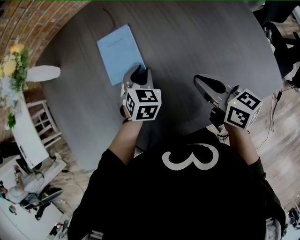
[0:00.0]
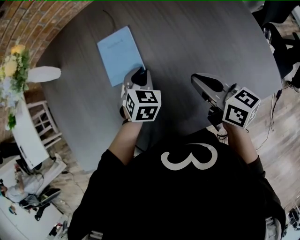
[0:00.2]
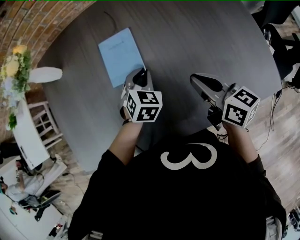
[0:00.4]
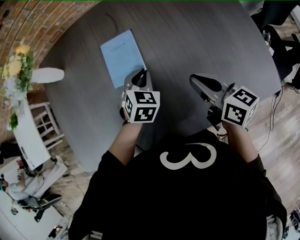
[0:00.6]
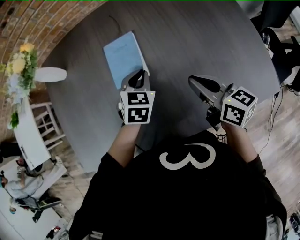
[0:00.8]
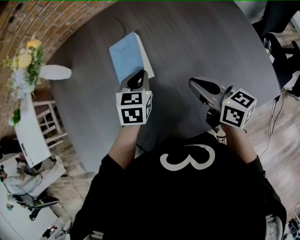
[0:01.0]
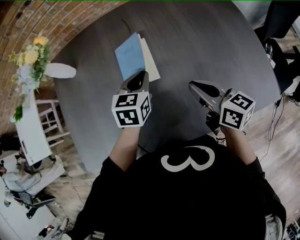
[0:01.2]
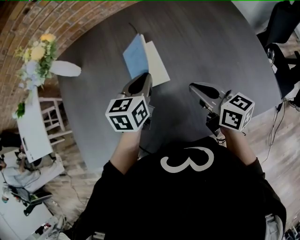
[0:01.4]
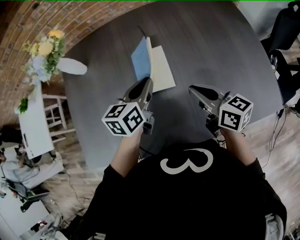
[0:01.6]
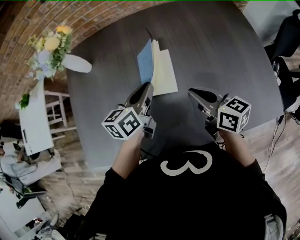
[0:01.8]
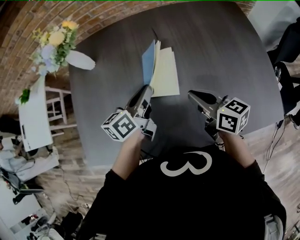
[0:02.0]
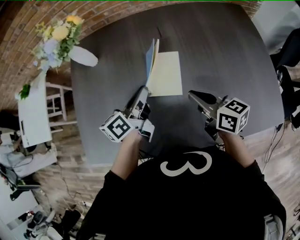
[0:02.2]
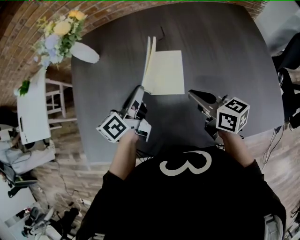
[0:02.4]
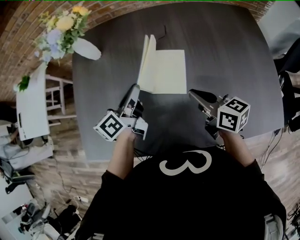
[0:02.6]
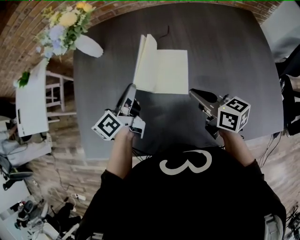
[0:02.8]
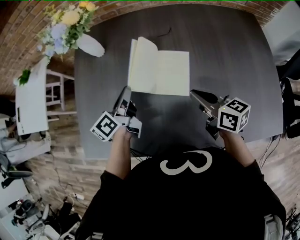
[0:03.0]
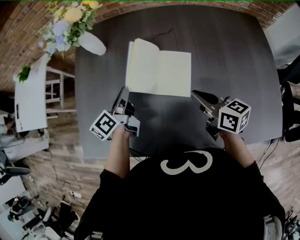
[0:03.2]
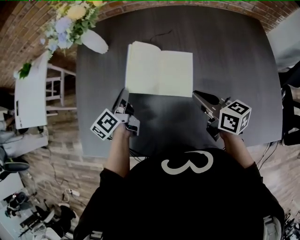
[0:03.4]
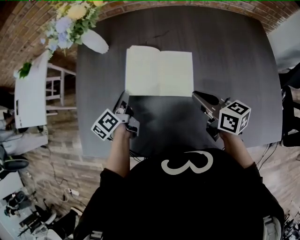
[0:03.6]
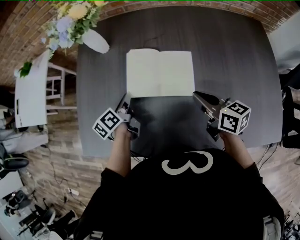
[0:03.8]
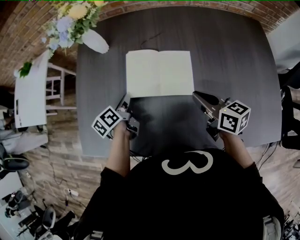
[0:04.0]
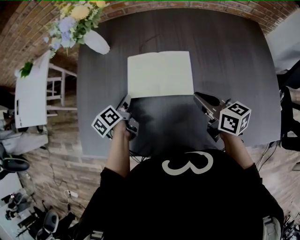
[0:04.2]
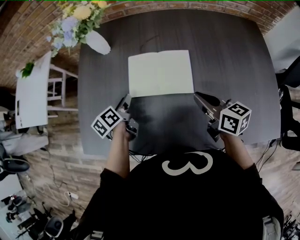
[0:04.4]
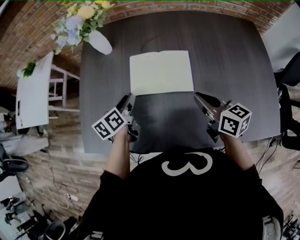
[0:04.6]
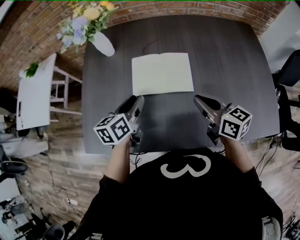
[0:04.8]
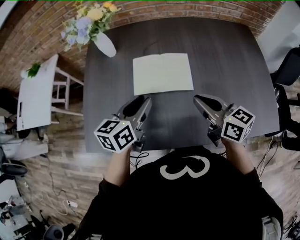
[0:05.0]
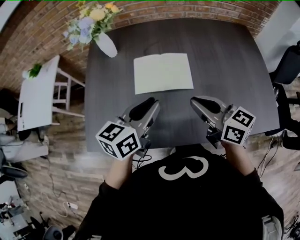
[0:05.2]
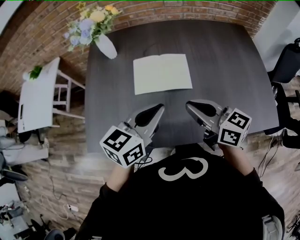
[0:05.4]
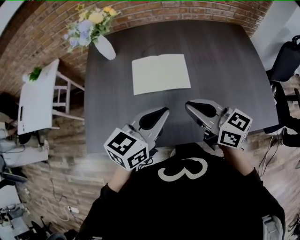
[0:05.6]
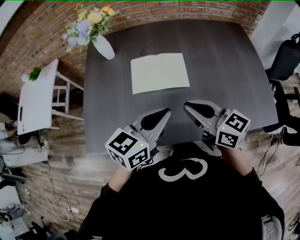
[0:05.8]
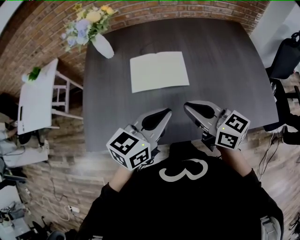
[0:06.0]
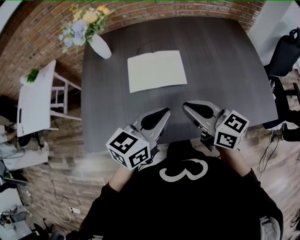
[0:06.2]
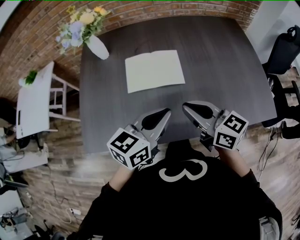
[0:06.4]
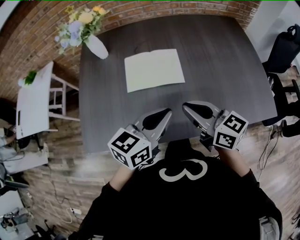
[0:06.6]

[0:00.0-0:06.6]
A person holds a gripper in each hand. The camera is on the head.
0.0 to 1.6 s: The right gripper goes about 5 cm to the left. The left gripper travels upward and to the left by approximately 15 cm, and rotates around the line of its fingers by approximately 40 degrees, counterclockwise from behind.
1.6 to 3.2 s: The right gripper travels to the left by approximately 5 cm. The left gripper is displaced to the left by roughly 20 cm, and twists roughly 40 degrees counterclockwise, seen from behind.
3.2 to 5.0 s: The right gripper travels upward and backward by some 10 cm; the left gripper travels backward and upward by about 15 cm, swivels about 40 degrees, and opens.
5.0 to 6.6 s: The left gripper moves backward and to the right, roughly 15 cm, turns by some 20 degrees, and closes, while the right gripper travels backward by roughly 5 cm.

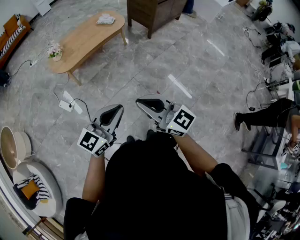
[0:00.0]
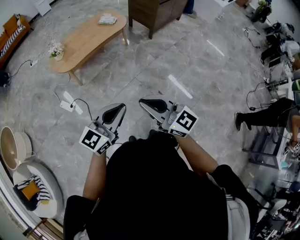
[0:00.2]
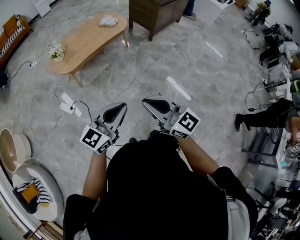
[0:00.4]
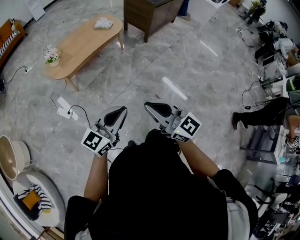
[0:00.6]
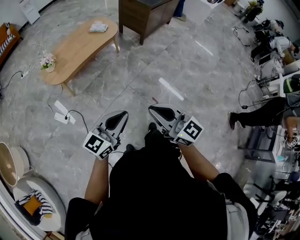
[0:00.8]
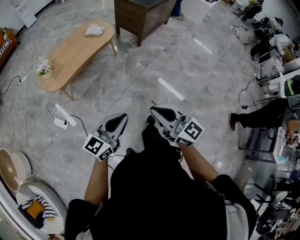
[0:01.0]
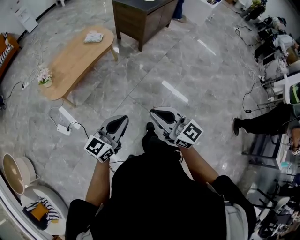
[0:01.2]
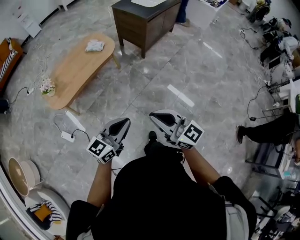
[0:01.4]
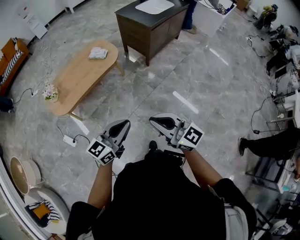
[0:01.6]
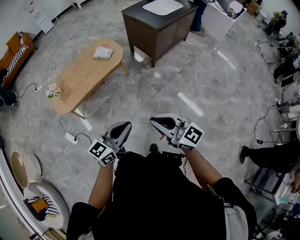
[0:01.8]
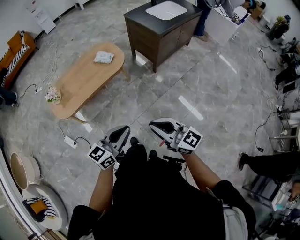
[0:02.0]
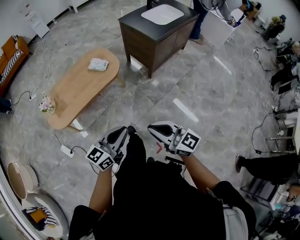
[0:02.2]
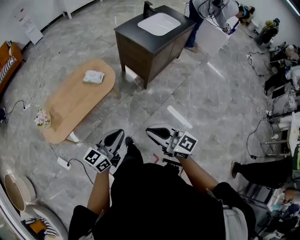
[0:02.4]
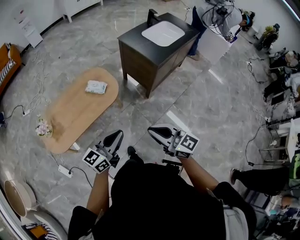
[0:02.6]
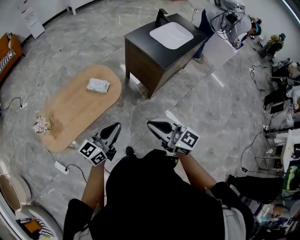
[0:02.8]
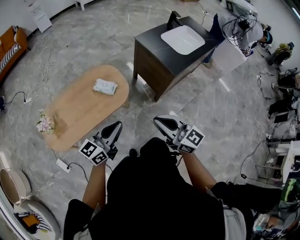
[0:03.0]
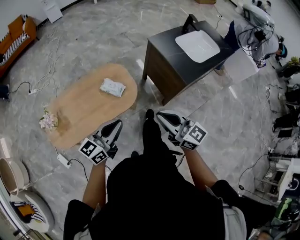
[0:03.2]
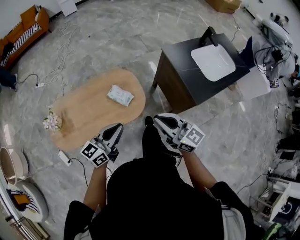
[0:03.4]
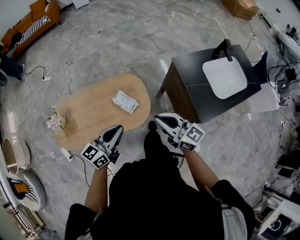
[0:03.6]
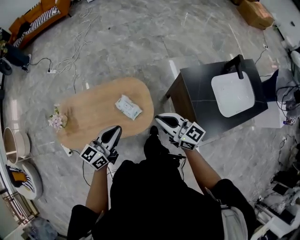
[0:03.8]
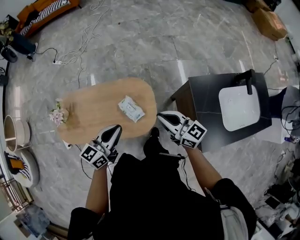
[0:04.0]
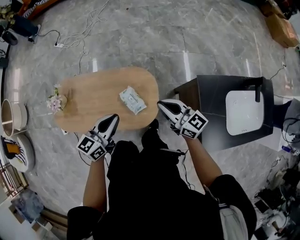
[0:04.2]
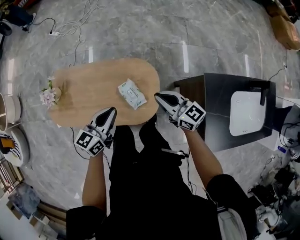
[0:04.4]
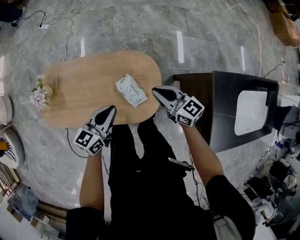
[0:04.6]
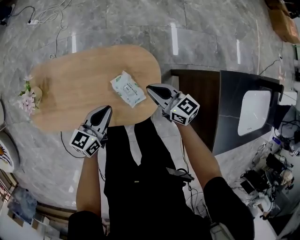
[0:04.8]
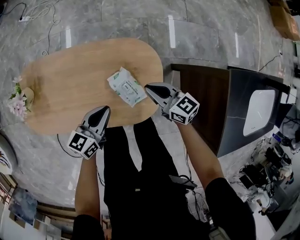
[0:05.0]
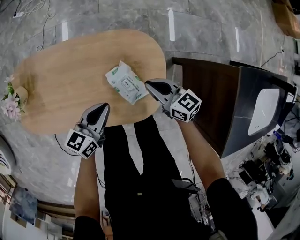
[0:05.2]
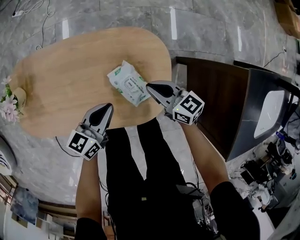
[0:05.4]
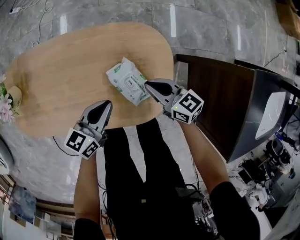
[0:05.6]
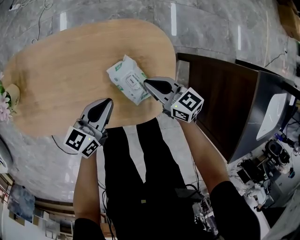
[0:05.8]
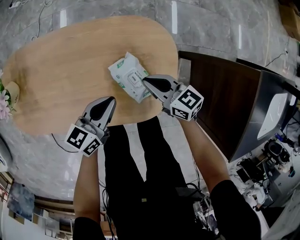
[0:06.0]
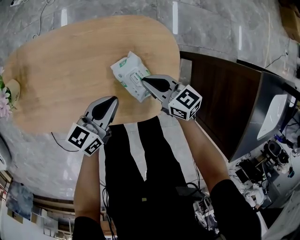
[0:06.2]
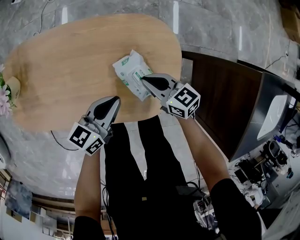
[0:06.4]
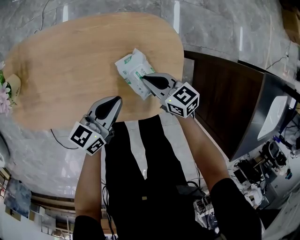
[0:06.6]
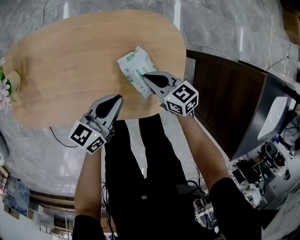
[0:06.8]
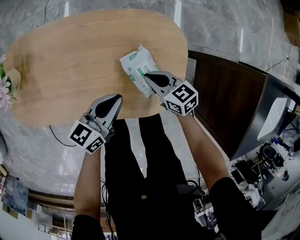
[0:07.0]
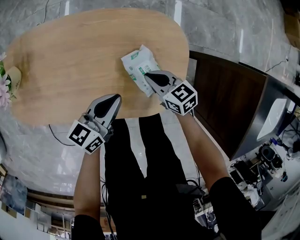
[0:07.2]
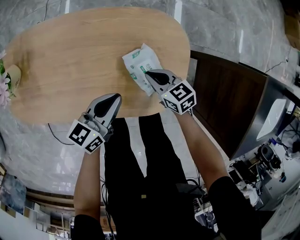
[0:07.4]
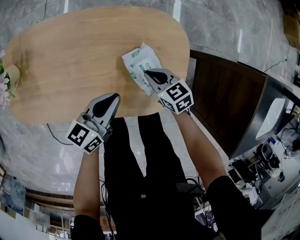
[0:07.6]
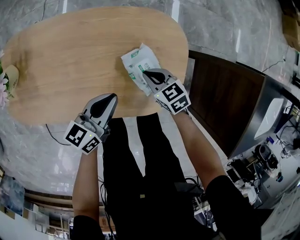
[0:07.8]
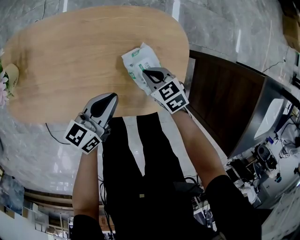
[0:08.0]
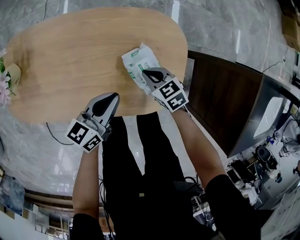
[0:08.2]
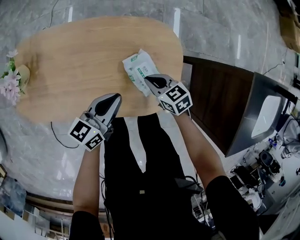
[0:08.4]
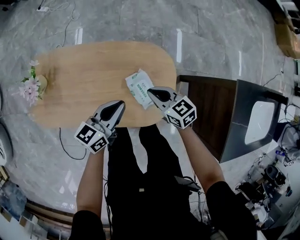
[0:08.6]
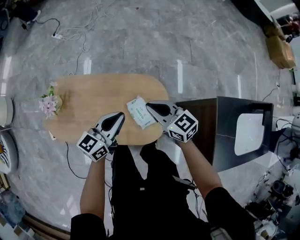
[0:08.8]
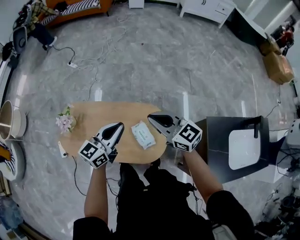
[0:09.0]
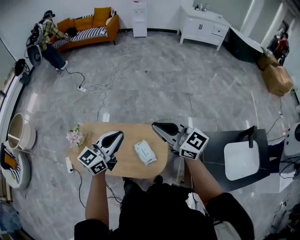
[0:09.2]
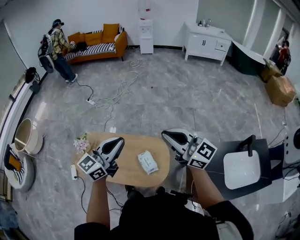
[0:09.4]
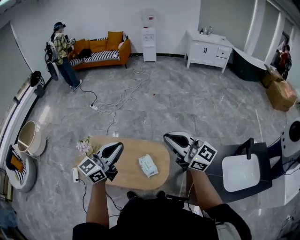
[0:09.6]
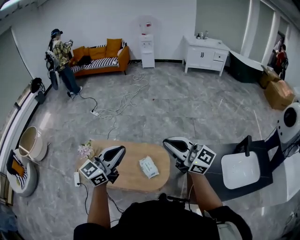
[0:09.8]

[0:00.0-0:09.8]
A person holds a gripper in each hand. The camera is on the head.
0.0 to 1.4 s: The right gripper shifts some 25 cm forward and to the right; the left gripper shifts approximately 25 cm forward.
1.4 to 2.8 s: The pair of grippers is taken forward, some 50 cm.
2.8 to 4.2 s: The two grippers travel together, some 50 cm. The left gripper changes its angle by approximately 40 degrees. Meanwhile the right gripper turns by about 40 degrees.
4.2 to 5.6 s: Both grippers travel together downward, about 35 cm. The right gripper rotates about 20 degrees.
5.6 to 7.0 s: The right gripper shifts some 10 cm downward and to the left.
8.4 to 9.8 s: Both grippers travel together upward, roughly 60 cm. The right gripper points its fingers roughly 60 degrees further upward. The left gripper swivels roughly 40 degrees.

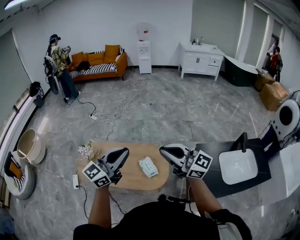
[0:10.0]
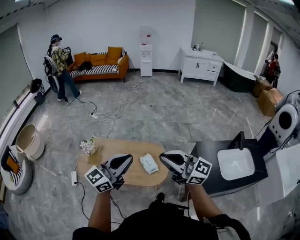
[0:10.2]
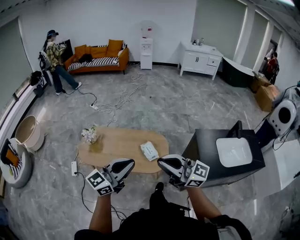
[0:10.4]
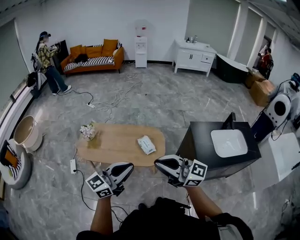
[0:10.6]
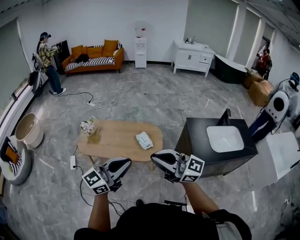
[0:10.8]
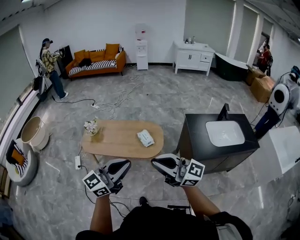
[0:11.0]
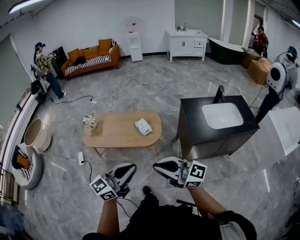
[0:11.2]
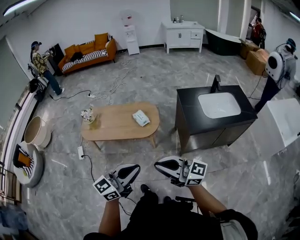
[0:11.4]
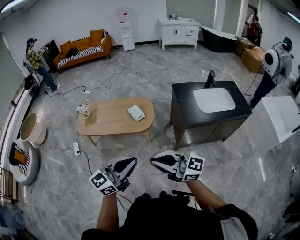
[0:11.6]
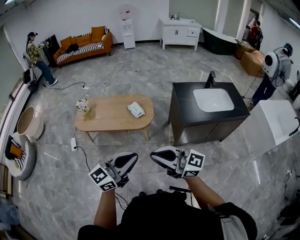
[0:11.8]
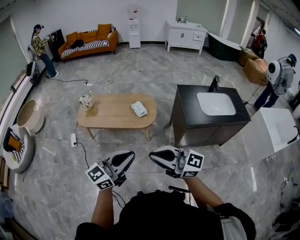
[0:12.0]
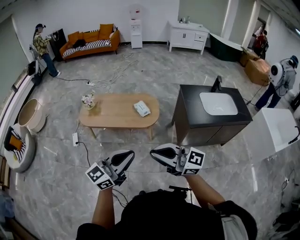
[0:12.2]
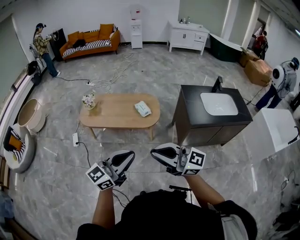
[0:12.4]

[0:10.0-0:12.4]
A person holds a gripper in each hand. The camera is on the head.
10.0 to 11.2 s: Both grippers are carried backward, about 50 cm.
11.2 to 12.4 s: The right gripper moves to the left and backward, some 10 cm, while the left gripper travels backward and to the left by about 10 cm.

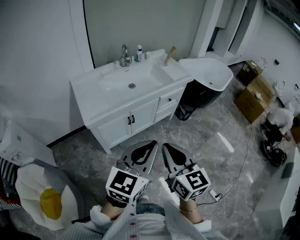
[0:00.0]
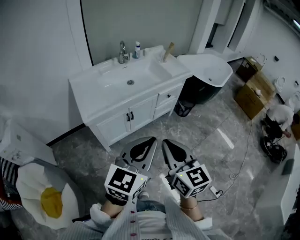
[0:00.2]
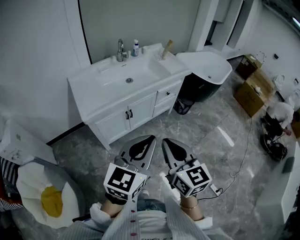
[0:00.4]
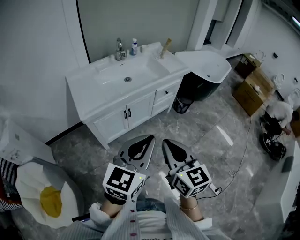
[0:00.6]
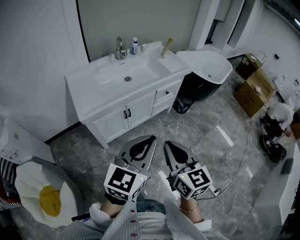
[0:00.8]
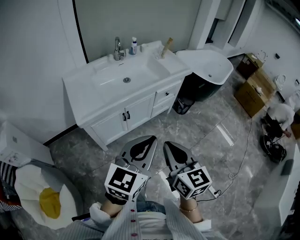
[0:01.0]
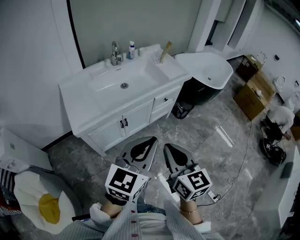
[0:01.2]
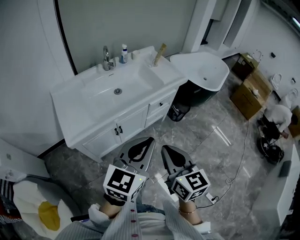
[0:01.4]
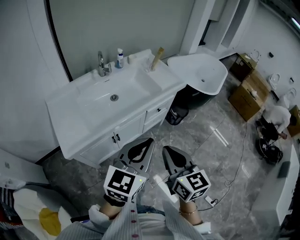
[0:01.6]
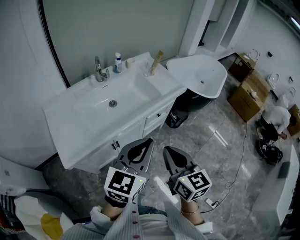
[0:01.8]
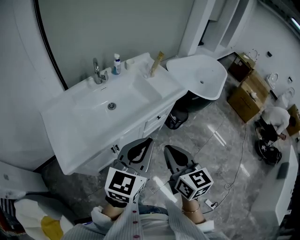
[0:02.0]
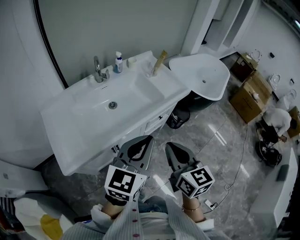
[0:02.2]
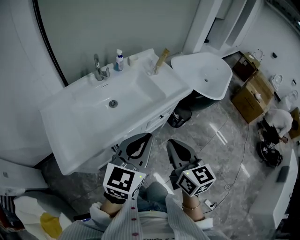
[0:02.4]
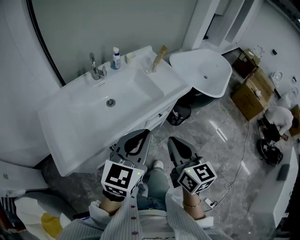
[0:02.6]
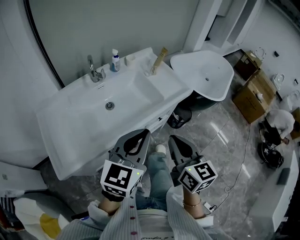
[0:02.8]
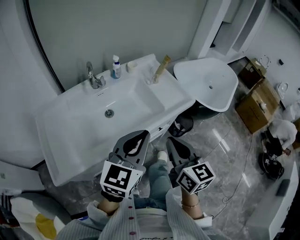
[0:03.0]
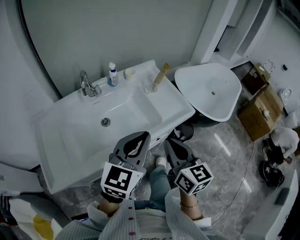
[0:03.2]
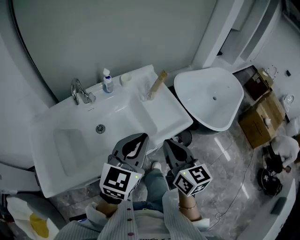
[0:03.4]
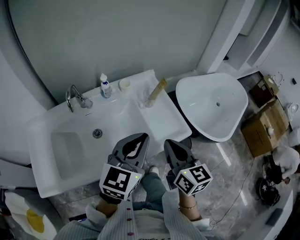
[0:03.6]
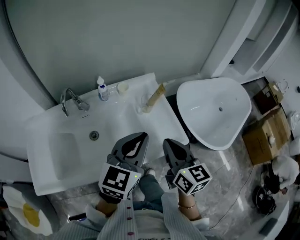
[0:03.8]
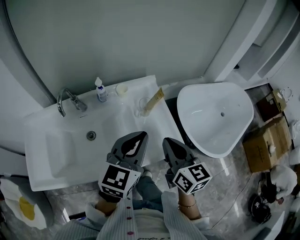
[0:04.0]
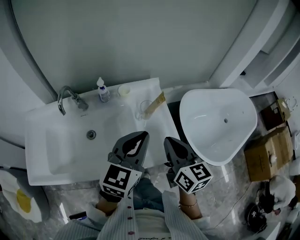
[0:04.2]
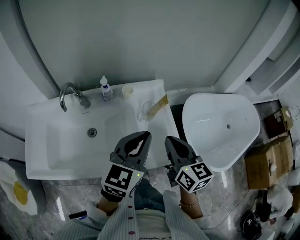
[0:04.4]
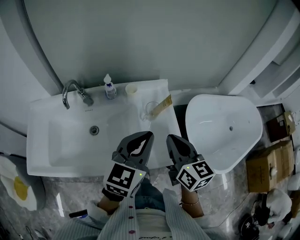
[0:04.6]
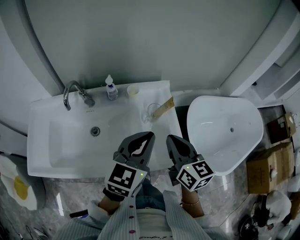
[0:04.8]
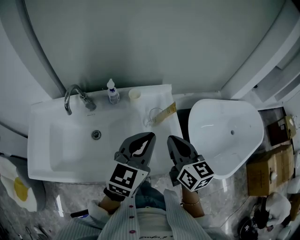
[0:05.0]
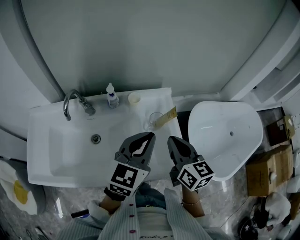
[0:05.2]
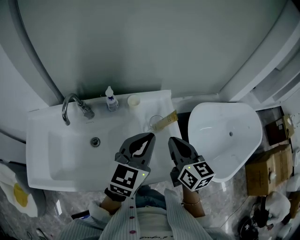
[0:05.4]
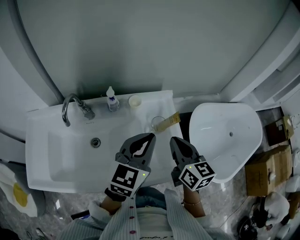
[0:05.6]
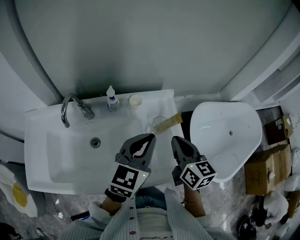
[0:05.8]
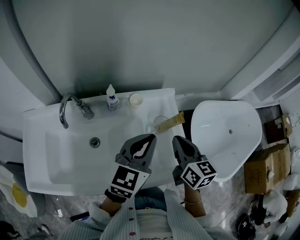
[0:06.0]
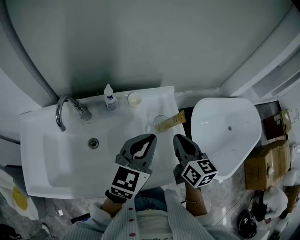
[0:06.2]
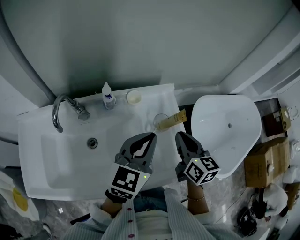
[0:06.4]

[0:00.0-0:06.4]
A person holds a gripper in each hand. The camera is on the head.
0.0 to 1.6 s: Both grippers travel together forward, about 20 cm.
1.6 to 3.2 s: Both grippers travel together forward, approximately 30 cm.
3.2 to 4.8 s: The two grippers go roughly 25 cm forward and to the right. The left gripper turns by approximately 20 degrees. Meanwhile the right gripper rotates approximately 20 degrees.
4.8 to 6.4 s: The right gripper travels forward and downward by roughly 10 cm. The left gripper heads forward, covering roughly 10 cm.
